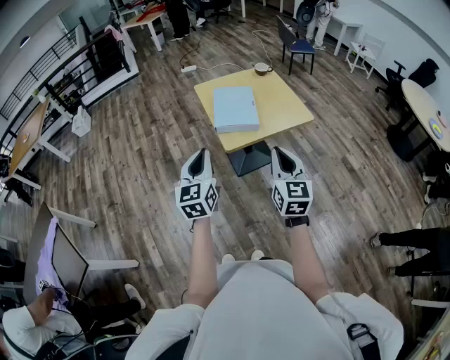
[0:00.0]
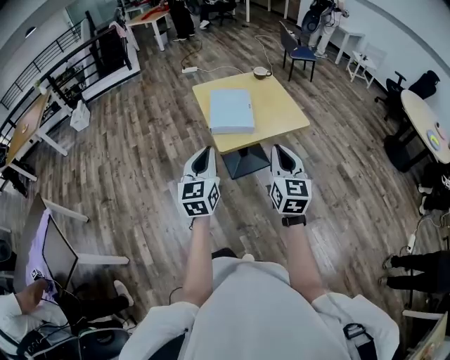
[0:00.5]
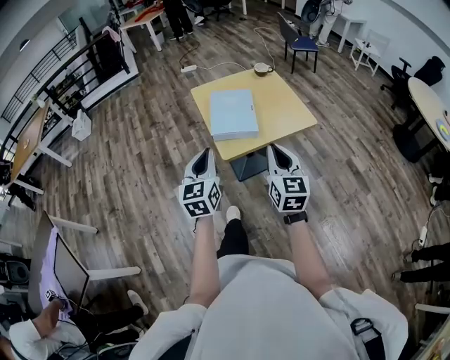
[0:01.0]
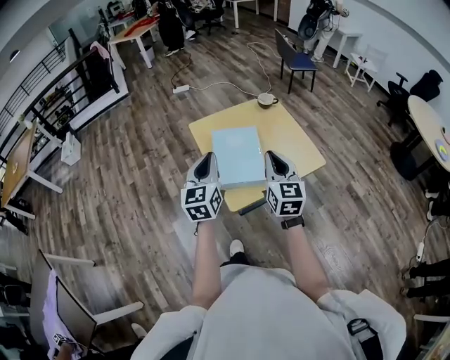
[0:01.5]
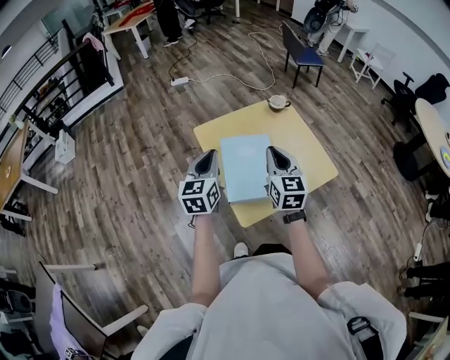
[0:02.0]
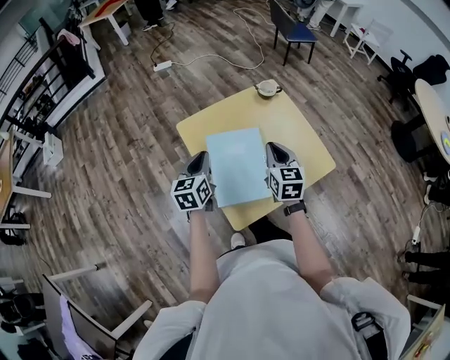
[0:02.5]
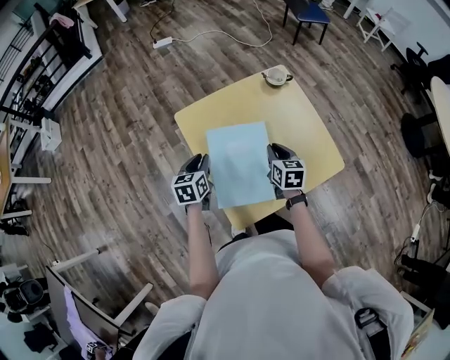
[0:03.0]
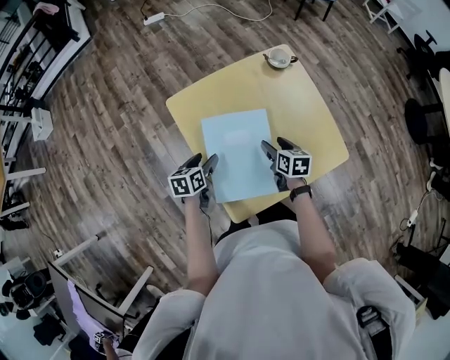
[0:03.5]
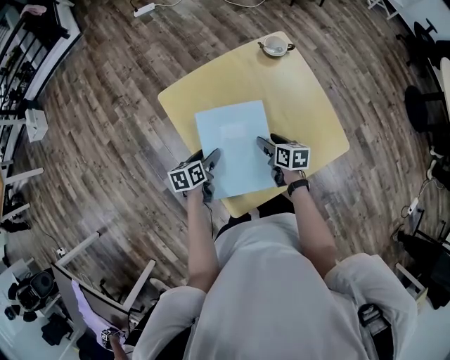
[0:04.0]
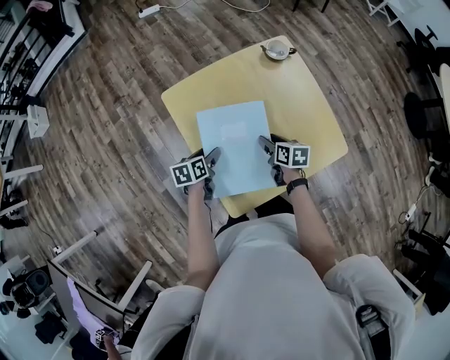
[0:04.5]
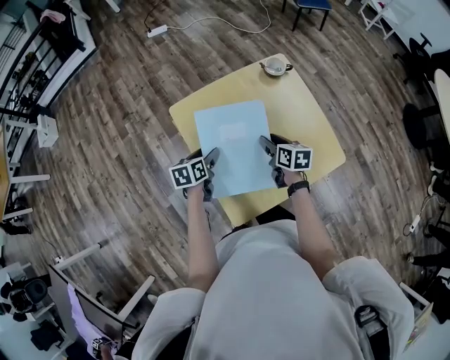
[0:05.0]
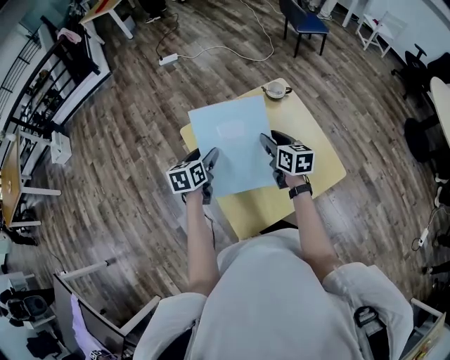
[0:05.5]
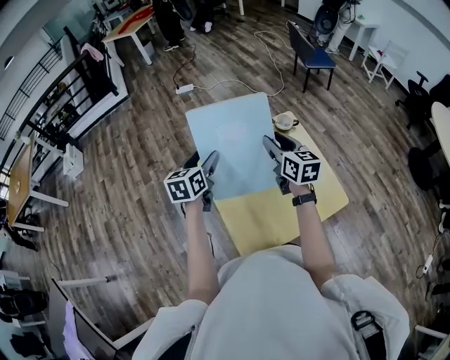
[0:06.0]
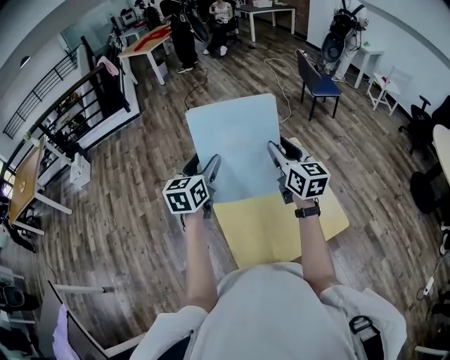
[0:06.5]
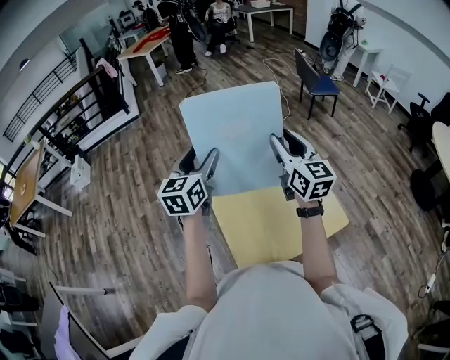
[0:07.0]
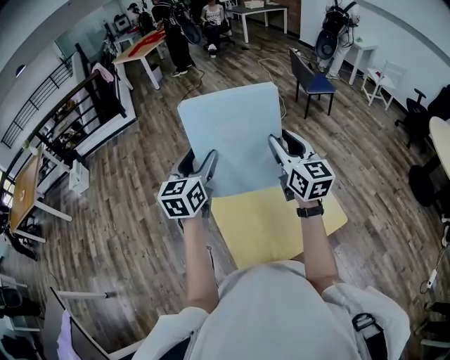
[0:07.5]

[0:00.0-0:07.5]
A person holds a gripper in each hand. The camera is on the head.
0:00.0 to 0:02.0: The two grippers travel together, forward, approximately 40 cm.
0:02.0 to 0:04.0: The two grippers go some 35 cm downward. The right gripper points its fingers roughly 30 degrees further downward, and opens its fingers. Meanwhile the left gripper tips its fingers downward by roughly 30 degrees, and opens.
0:04.0 to 0:05.5: The grippers both shift upward by roughly 20 cm. The left gripper swivels approximately 20 degrees. The right gripper rotates roughly 20 degrees.
0:05.5 to 0:07.5: The two grippers go roughly 25 cm upward. The left gripper rotates roughly 30 degrees. The right gripper swivels approximately 30 degrees.

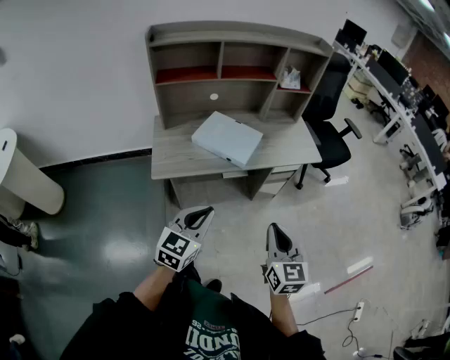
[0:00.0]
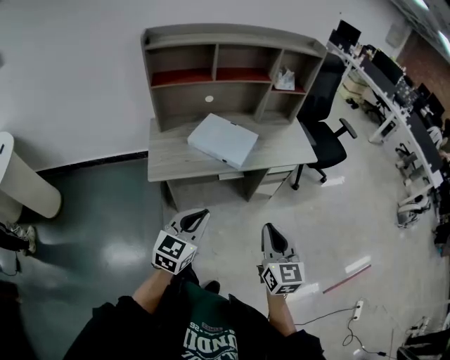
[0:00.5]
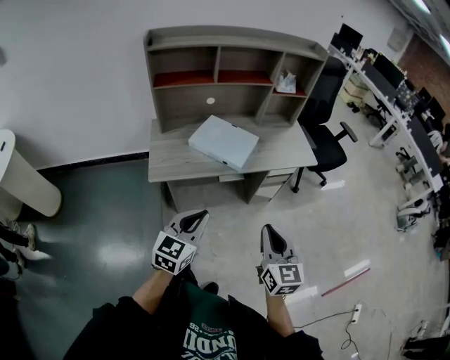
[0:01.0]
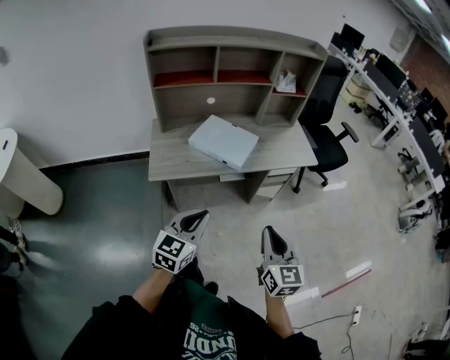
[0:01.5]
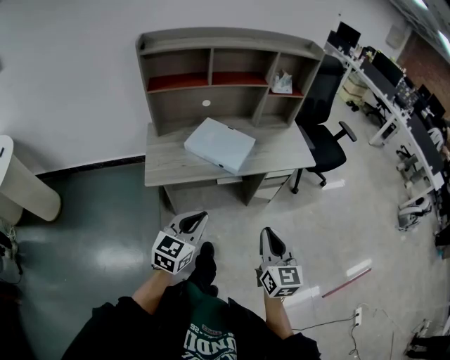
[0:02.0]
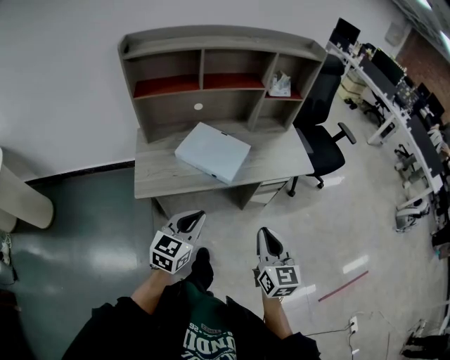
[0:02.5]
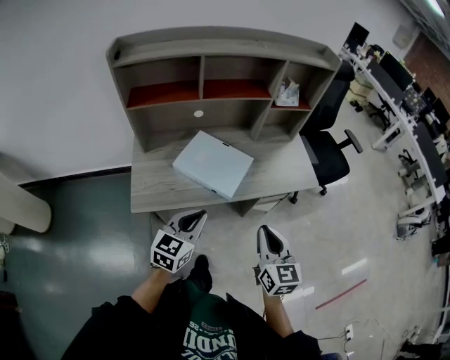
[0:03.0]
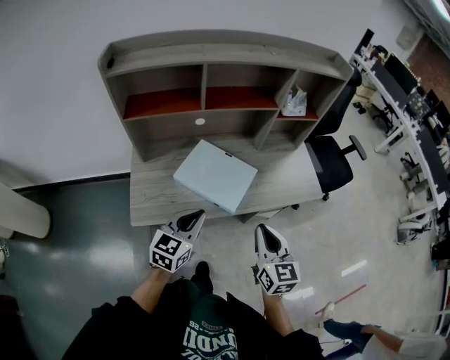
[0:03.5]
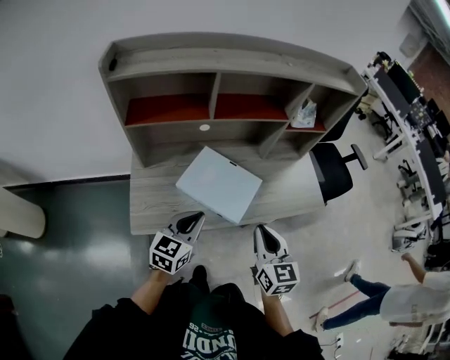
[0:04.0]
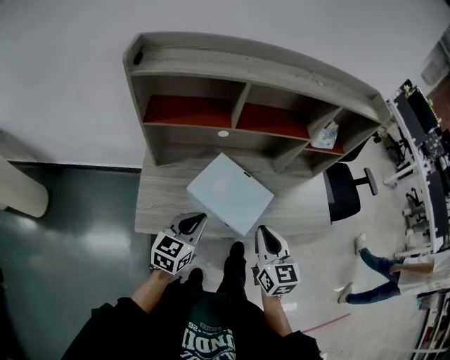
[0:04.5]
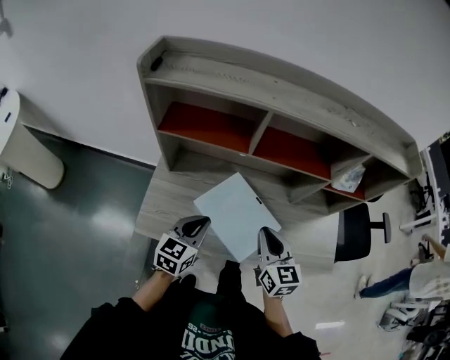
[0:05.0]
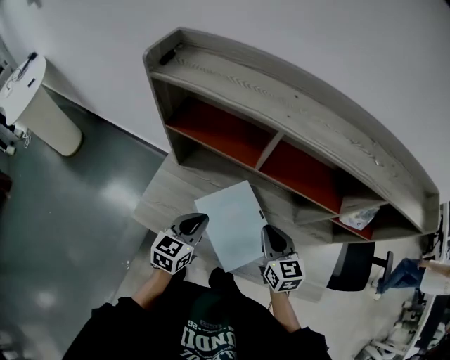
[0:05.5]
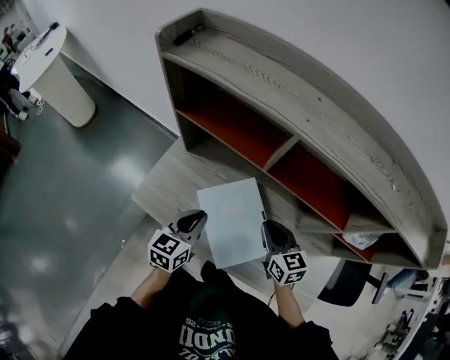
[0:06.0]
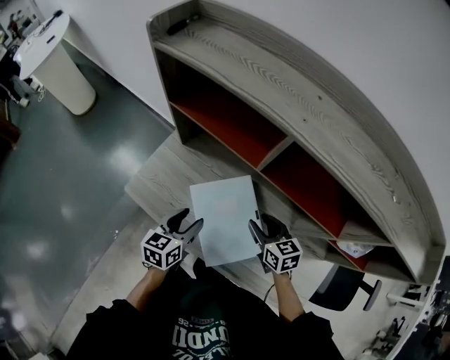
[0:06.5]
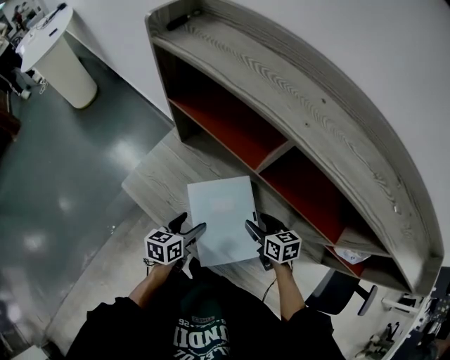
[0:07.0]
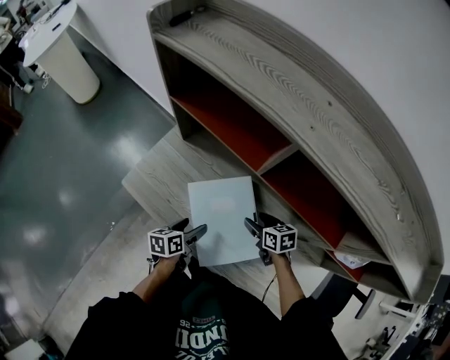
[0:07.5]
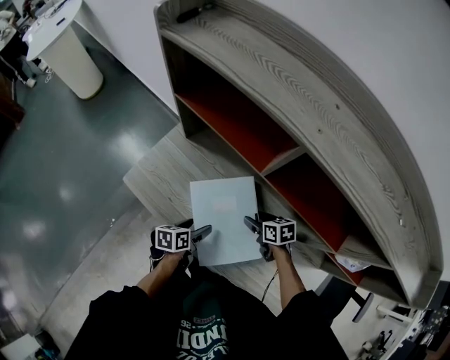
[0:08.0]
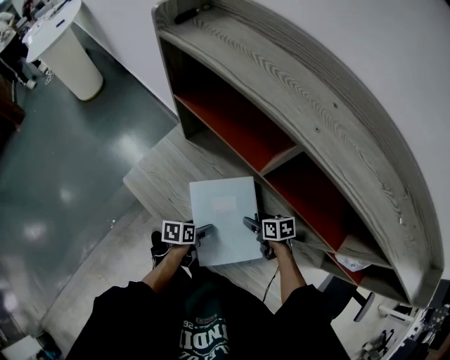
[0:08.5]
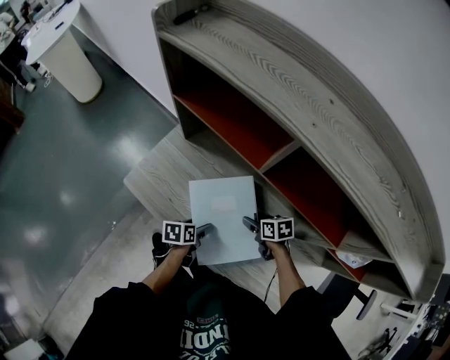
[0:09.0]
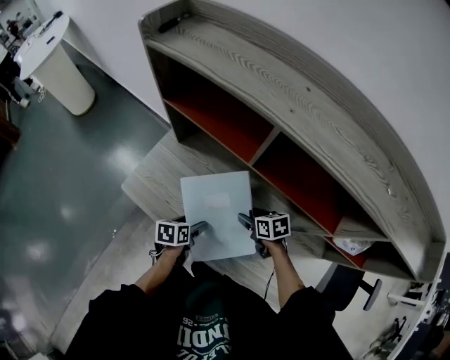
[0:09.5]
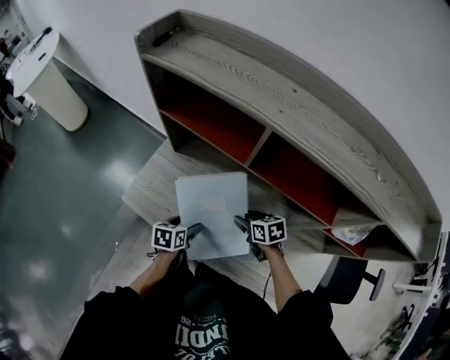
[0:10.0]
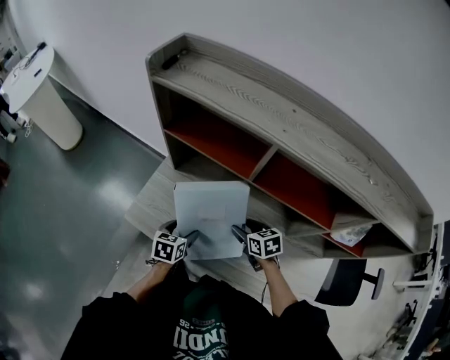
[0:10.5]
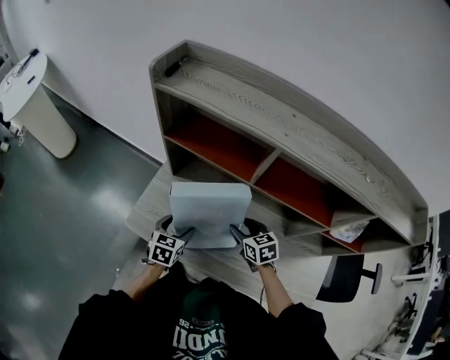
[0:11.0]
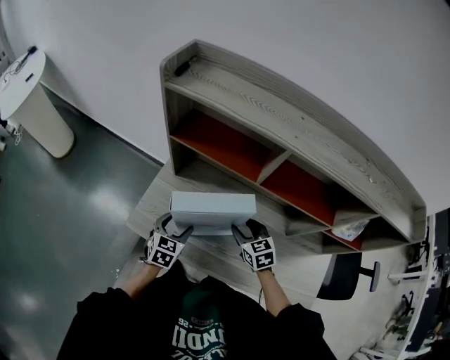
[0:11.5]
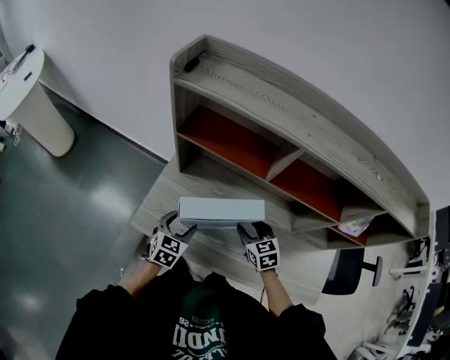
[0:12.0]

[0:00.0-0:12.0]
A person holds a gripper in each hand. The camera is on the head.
0:00.0 to 0:02.0: The grippers make only small movements.
0:02.0 to 0:04.0: Both grippers travel together forward, roughly 30 cm.
0:04.0 to 0:06.0: The left gripper moves about 15 cm, and rotates about 40 degrees. The right gripper changes place by approximately 30 cm, and rotates about 50 degrees.
0:06.0 to 0:08.0: The grippers both shift downward by some 20 cm. The left gripper rotates approximately 40 degrees, and opens its fingers. The right gripper changes its angle by roughly 40 degrees, and opens up.
0:08.0 to 0:10.0: The right gripper is displaced upward by some 5 cm; the left gripper shifts by about 5 cm.
0:10.0 to 0:12.0: The right gripper goes some 10 cm to the left and upward, and turns by some 30 degrees. The left gripper heads to the left, upward and forward, covering approximately 10 cm, and turns by approximately 40 degrees.

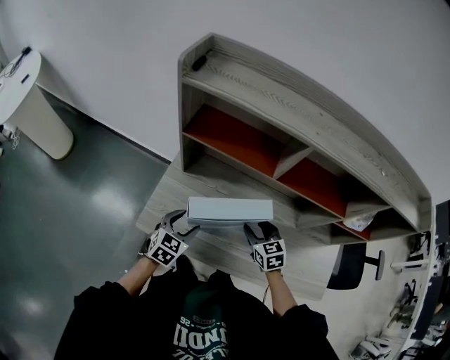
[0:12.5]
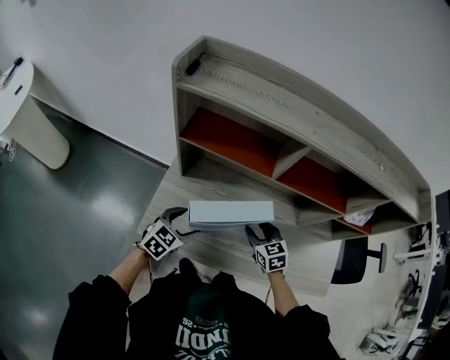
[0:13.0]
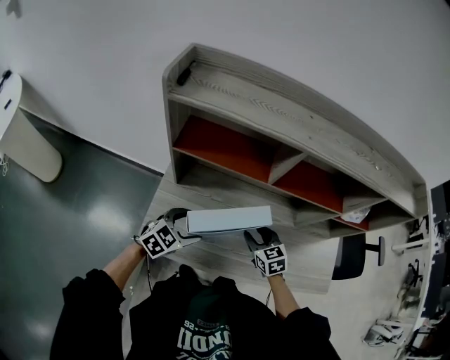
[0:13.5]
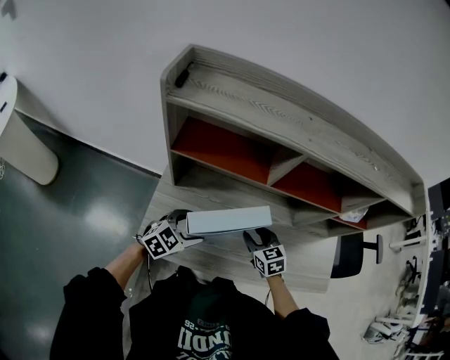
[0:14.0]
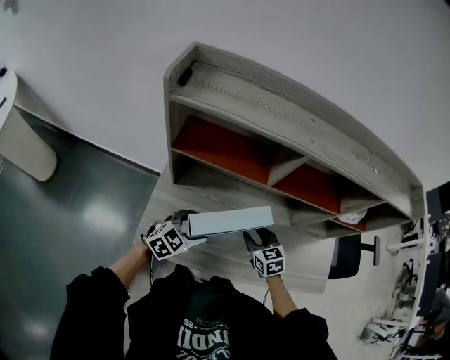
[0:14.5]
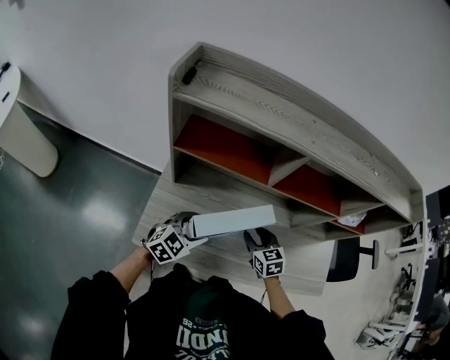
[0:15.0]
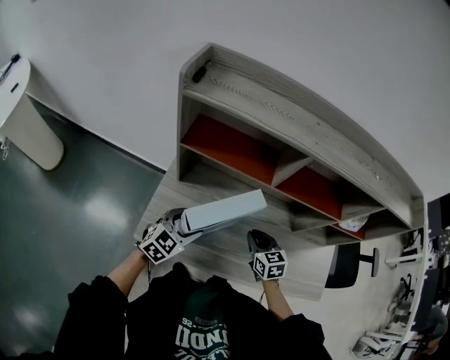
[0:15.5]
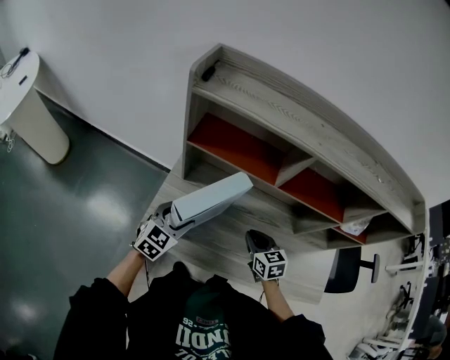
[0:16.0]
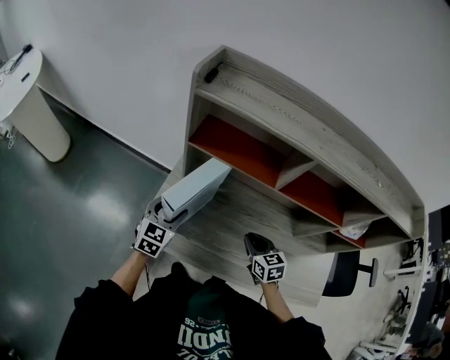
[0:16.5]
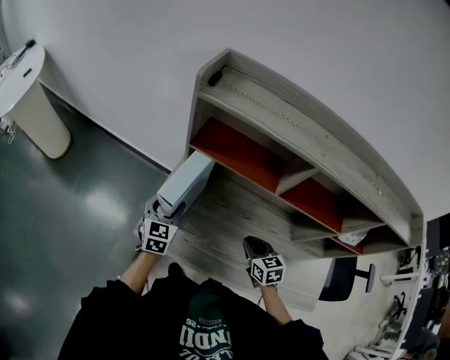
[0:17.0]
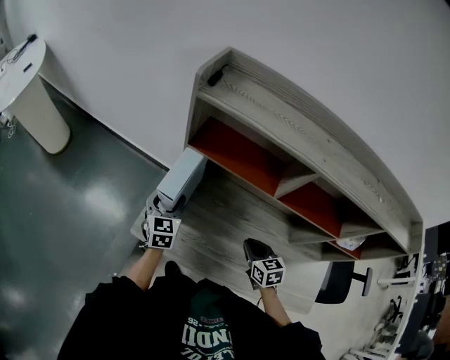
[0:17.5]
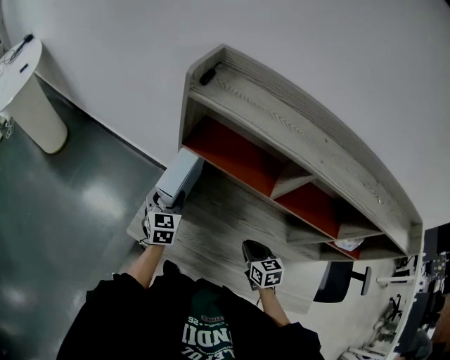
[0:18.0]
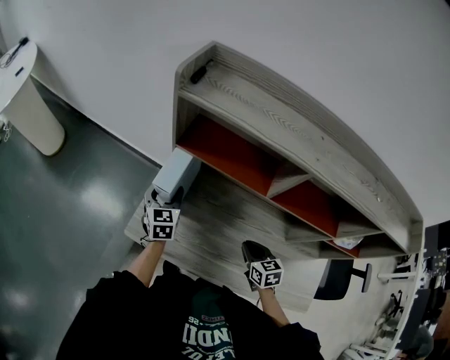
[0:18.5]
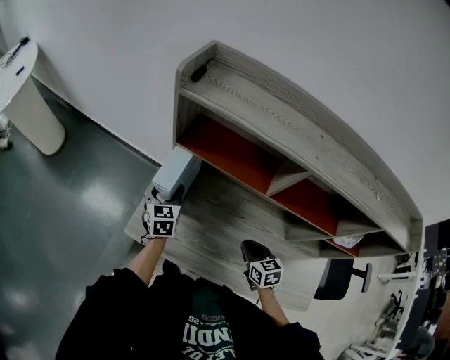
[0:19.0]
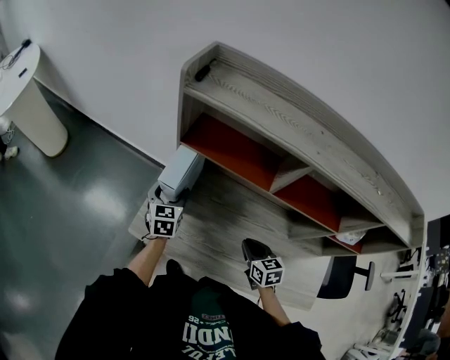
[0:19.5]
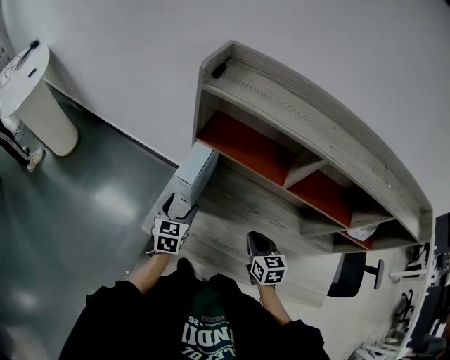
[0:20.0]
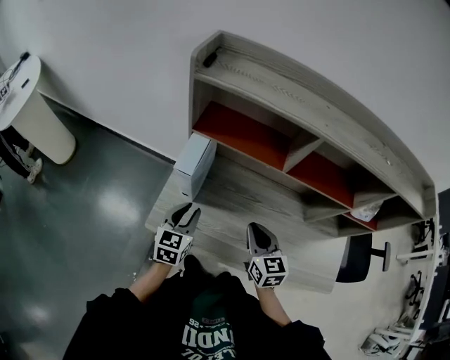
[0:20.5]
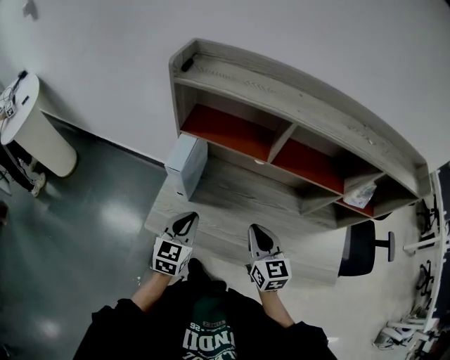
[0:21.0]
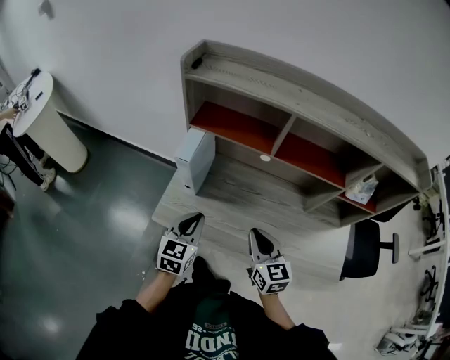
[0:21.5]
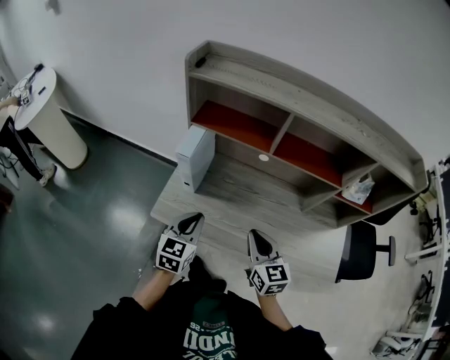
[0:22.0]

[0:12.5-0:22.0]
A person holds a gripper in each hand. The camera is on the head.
0:12.5 to 0:14.5: The left gripper changes place by some 5 cm, and changes its angle by about 30 degrees.
0:14.5 to 0:16.5: The left gripper moves approximately 15 cm, and changes its angle by about 40 degrees, while the right gripper closes its fingers.
0:16.5 to 0:18.0: The left gripper heads forward, covering approximately 5 cm, and rotates about 20 degrees.
0:18.0 to 0:20.0: The right gripper ends up some 5 cm from where it was. Meanwhile the left gripper is displaced backward by approximately 5 cm.
0:20.0 to 0:22.0: The right gripper travels backward and upward by approximately 15 cm; the left gripper is displaced backward, upward and to the right by roughly 20 cm, and closes up.
